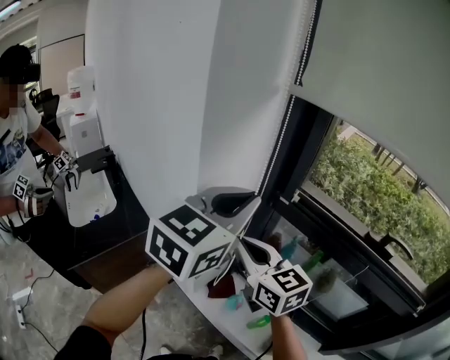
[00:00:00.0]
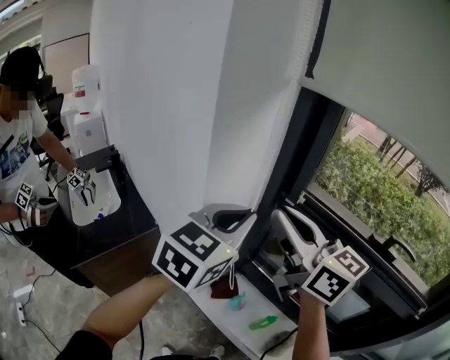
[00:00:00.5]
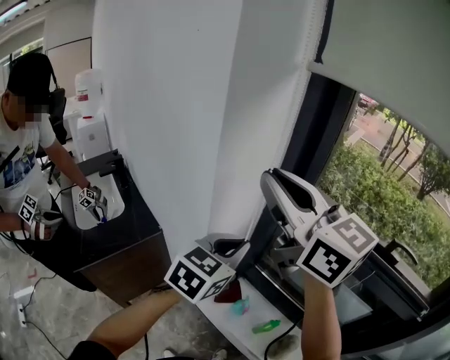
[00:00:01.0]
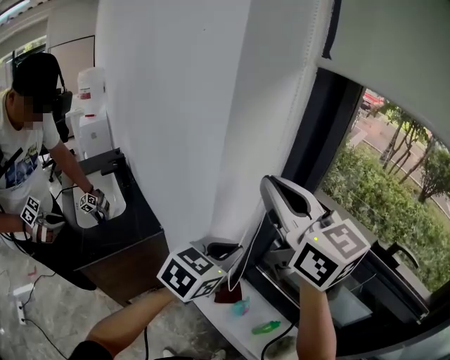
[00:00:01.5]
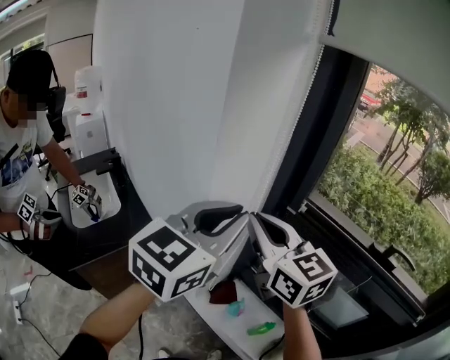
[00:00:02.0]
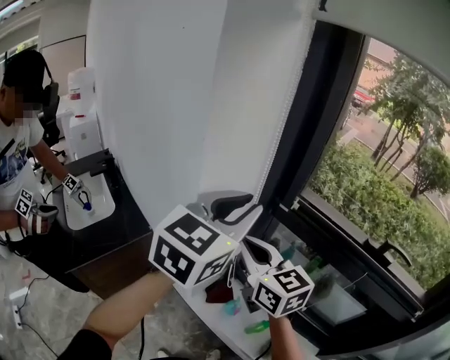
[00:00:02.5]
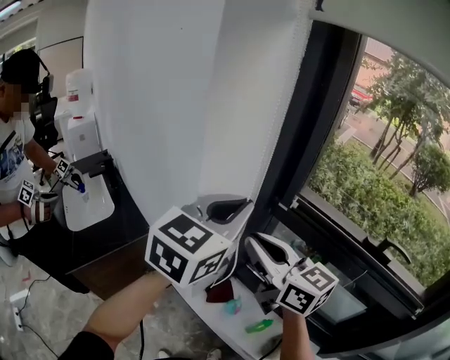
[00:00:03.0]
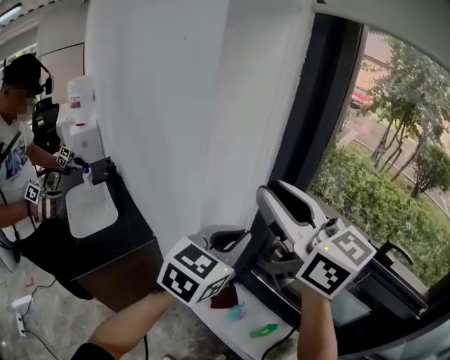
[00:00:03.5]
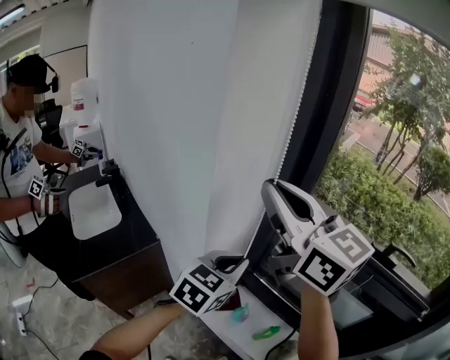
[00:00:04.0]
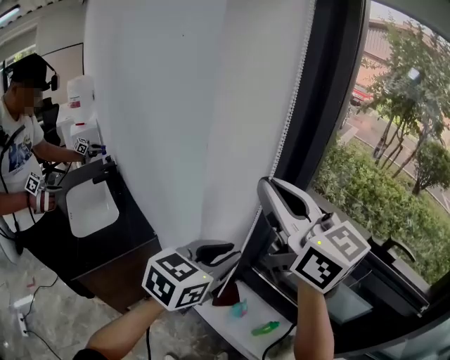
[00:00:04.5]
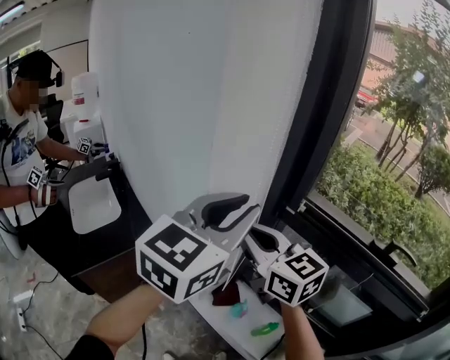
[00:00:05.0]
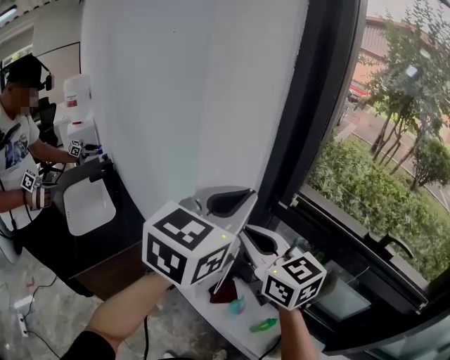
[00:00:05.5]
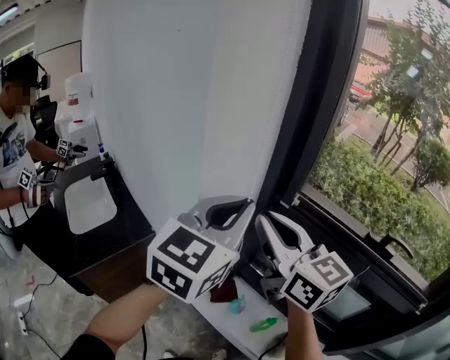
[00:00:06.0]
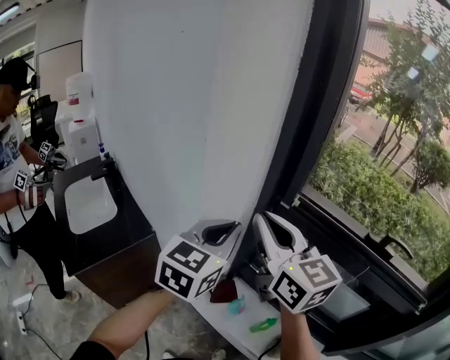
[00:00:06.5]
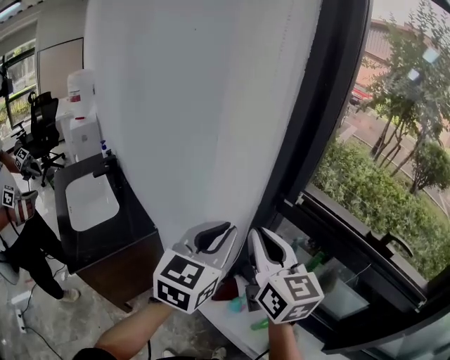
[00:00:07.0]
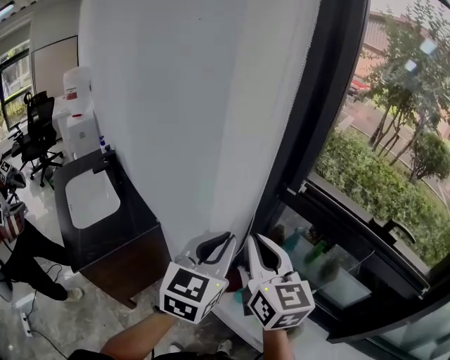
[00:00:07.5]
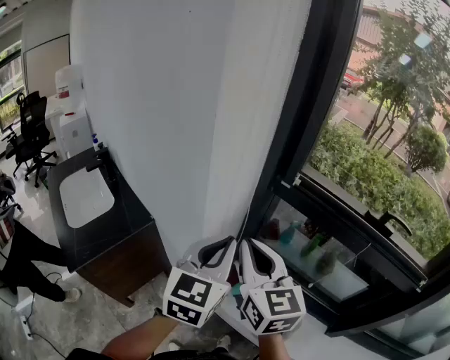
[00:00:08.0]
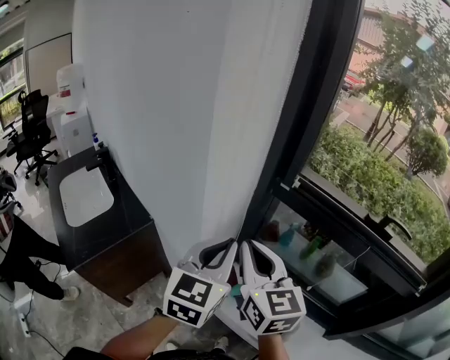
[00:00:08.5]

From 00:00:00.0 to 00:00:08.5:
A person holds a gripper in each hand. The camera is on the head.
From 00:00:00.0 to 00:00:02.0: The left gripper goes downward and returns, approximately 15 cm each way, while the right gripper moves upward, approximately 10 cm.
From 00:00:02.0 to 00:00:04.0: The left gripper shifts approximately 15 cm downward. The right gripper is displaced upward by roughly 10 cm.
From 00:00:04.0 to 00:00:06.5: The left gripper shifts about 5 cm upward, while the right gripper goes roughly 10 cm downward.
From 00:00:06.5 to 00:00:08.5: The left gripper is displaced backward by some 5 cm; the right gripper travels downward and backward by about 10 cm.

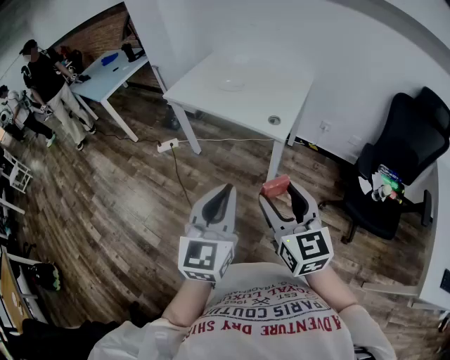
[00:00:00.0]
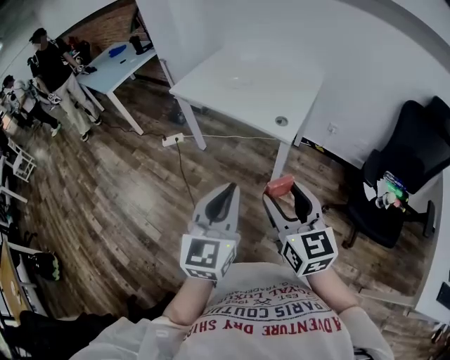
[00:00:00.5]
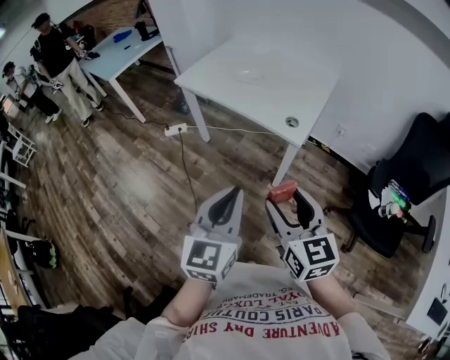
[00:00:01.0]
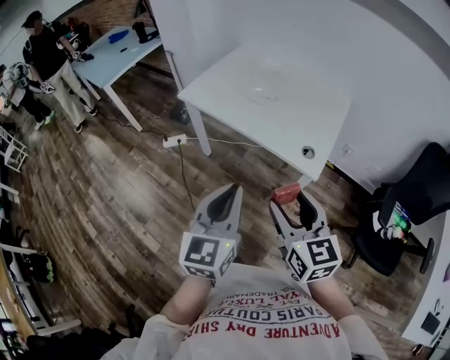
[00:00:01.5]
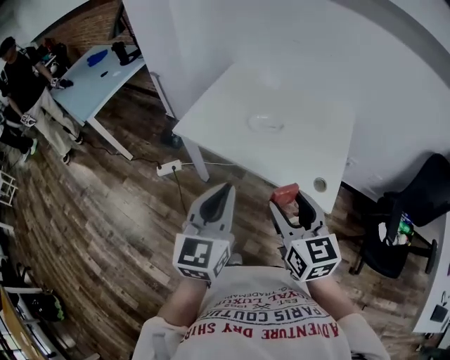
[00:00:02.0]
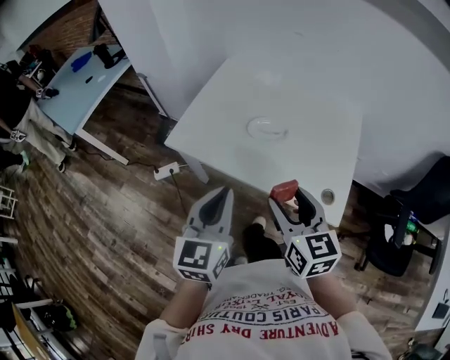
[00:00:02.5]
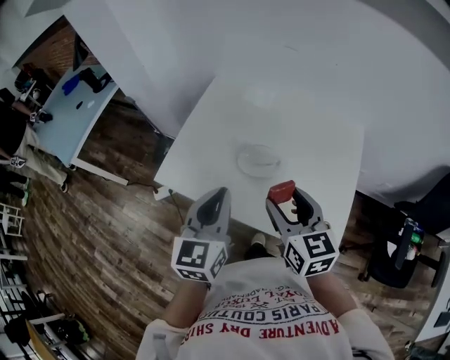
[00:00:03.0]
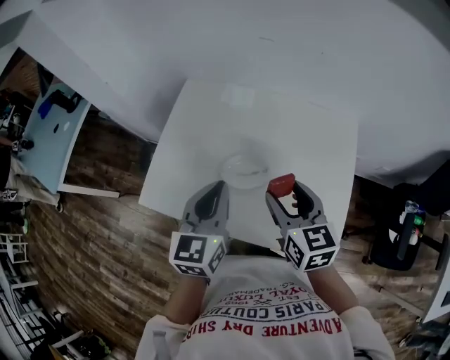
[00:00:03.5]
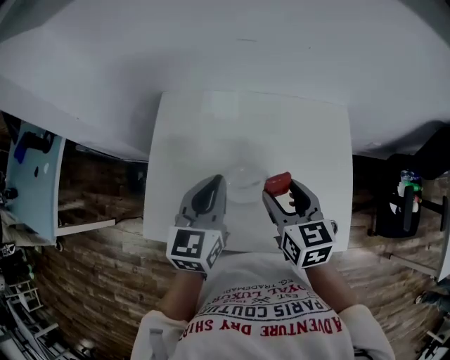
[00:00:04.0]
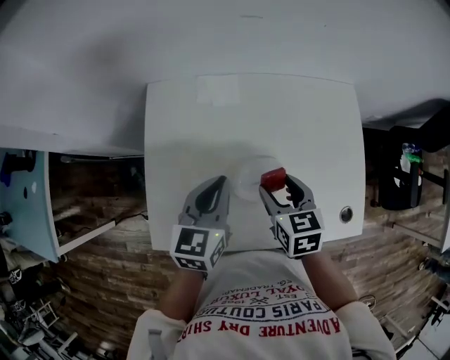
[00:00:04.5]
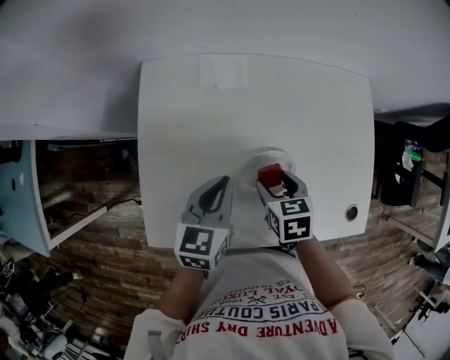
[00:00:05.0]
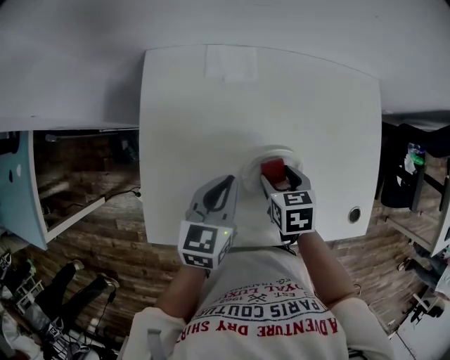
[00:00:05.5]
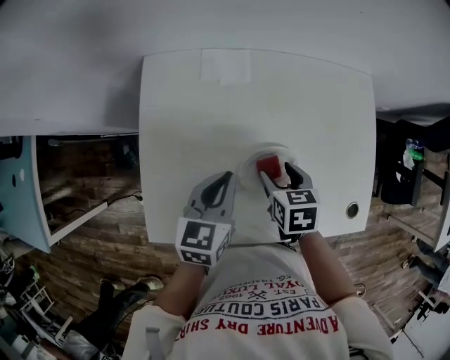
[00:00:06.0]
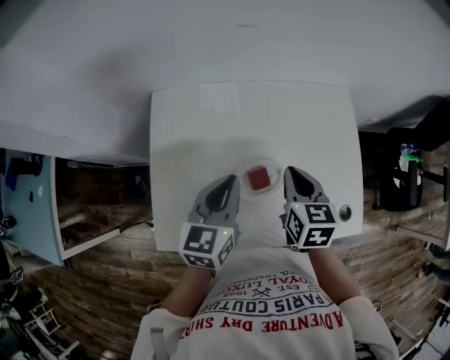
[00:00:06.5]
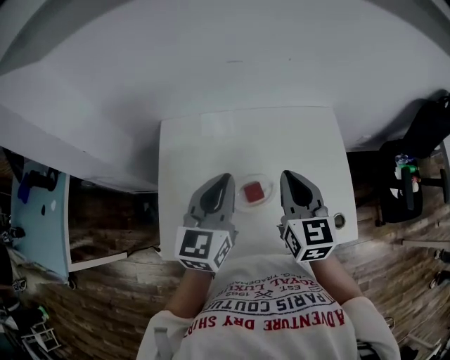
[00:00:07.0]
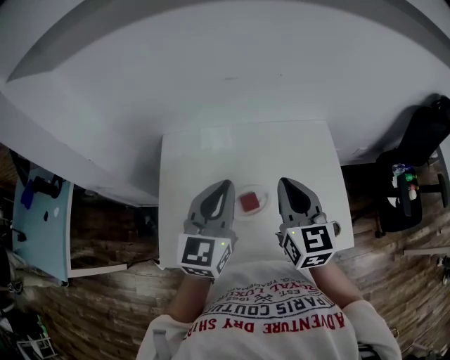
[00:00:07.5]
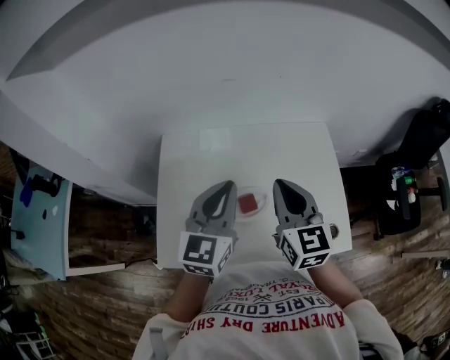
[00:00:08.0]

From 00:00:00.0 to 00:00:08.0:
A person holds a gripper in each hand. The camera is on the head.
From 00:00:00.0 to 00:00:02.0: The two grippers travel together, forward and to the left, roughly 40 cm.
From 00:00:02.0 to 00:00:04.0: The two grippers travel together, forward, approximately 40 cm. The left gripper turns by about 30 degrees; the right gripper rotates roughly 30 degrees.
From 00:00:04.0 to 00:00:06.0: The two grippers go approximately 15 cm downward. The right gripper turns by some 30 degrees.
From 00:00:06.0 to 00:00:08.0: Both grippers move upward, some 25 cm. The left gripper turns by about 30 degrees. The right gripper points its fingers some 50 degrees further upward, and closes up.

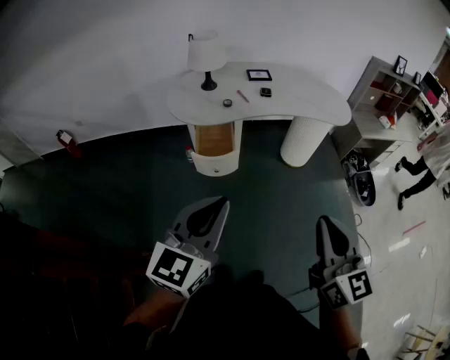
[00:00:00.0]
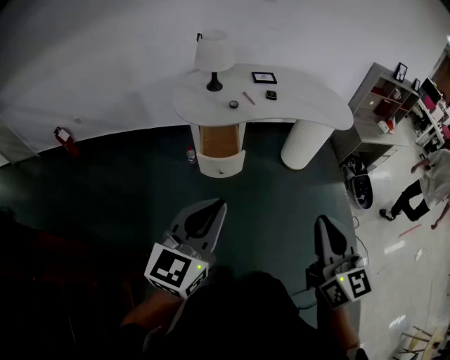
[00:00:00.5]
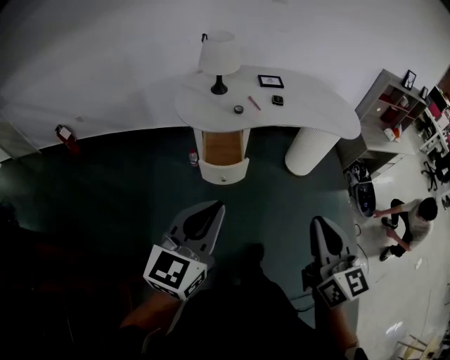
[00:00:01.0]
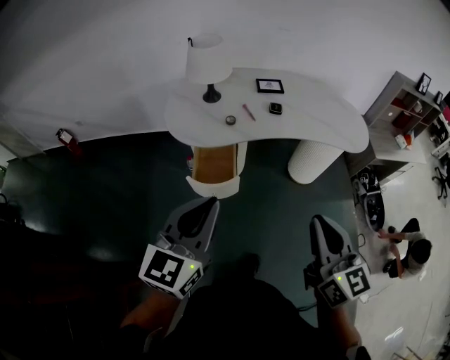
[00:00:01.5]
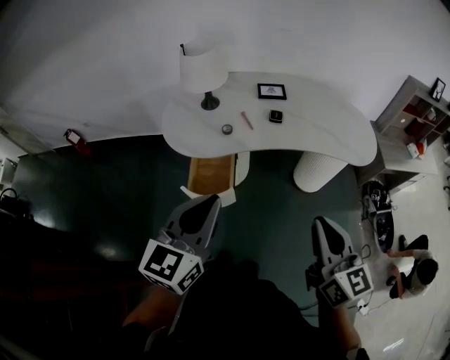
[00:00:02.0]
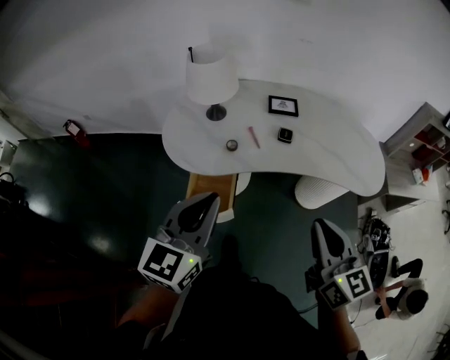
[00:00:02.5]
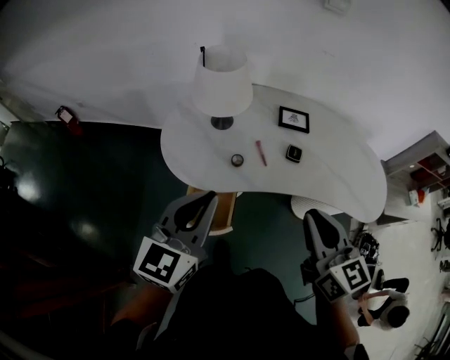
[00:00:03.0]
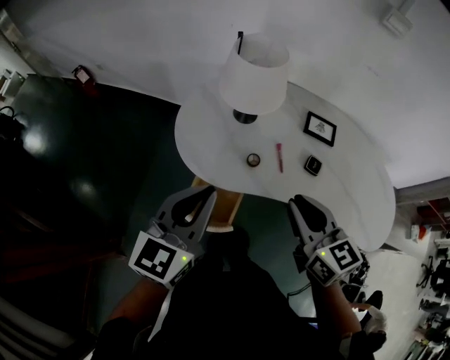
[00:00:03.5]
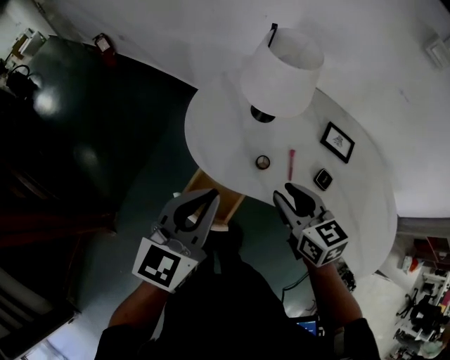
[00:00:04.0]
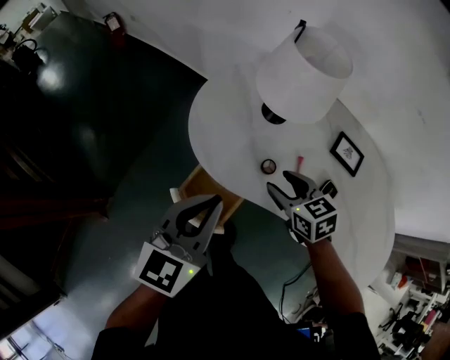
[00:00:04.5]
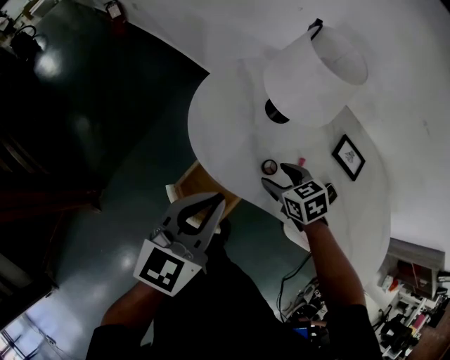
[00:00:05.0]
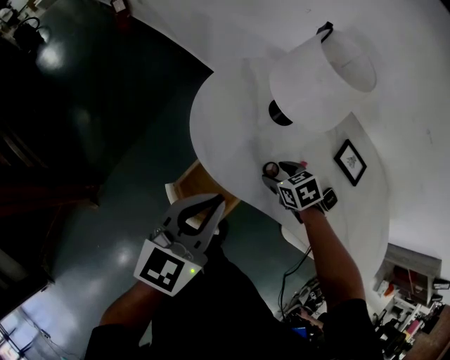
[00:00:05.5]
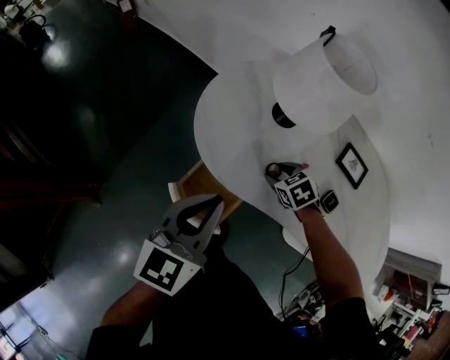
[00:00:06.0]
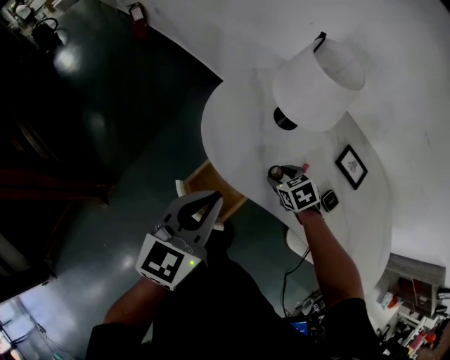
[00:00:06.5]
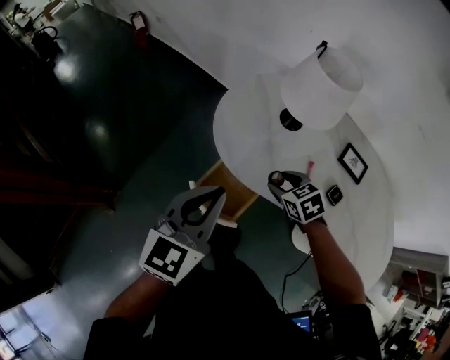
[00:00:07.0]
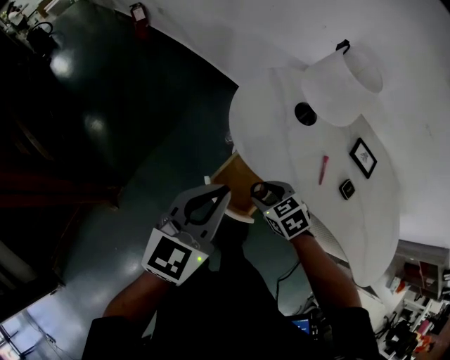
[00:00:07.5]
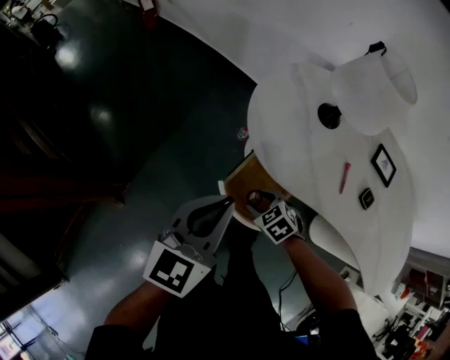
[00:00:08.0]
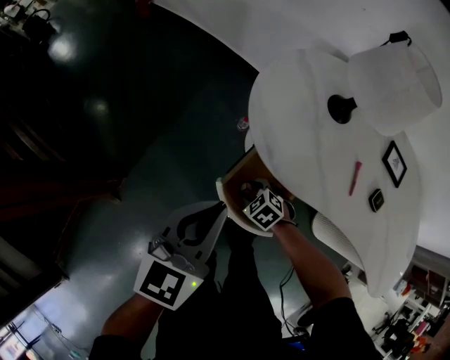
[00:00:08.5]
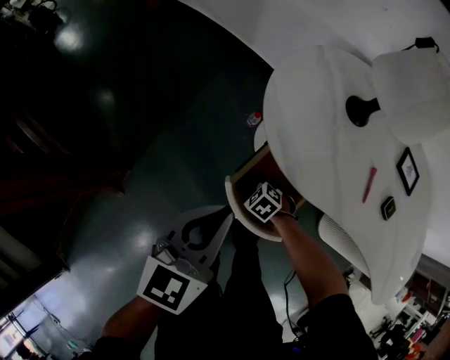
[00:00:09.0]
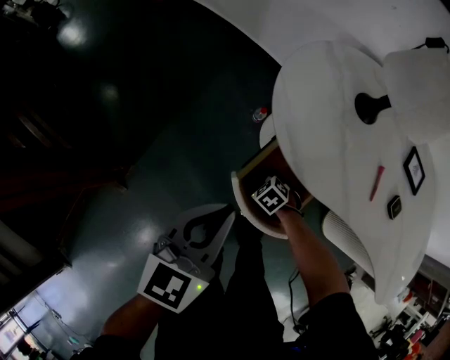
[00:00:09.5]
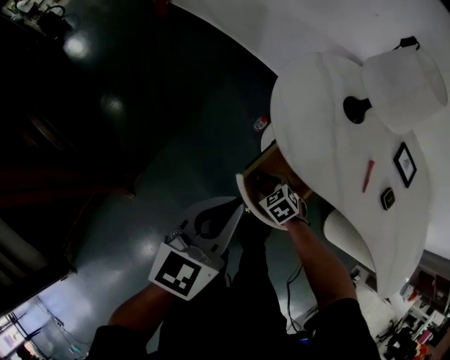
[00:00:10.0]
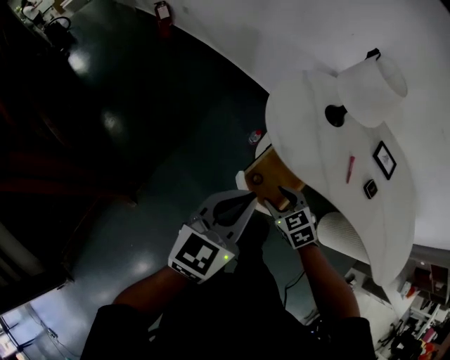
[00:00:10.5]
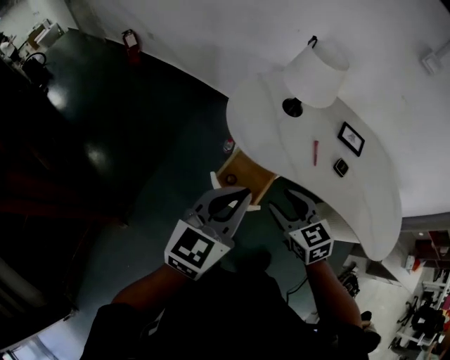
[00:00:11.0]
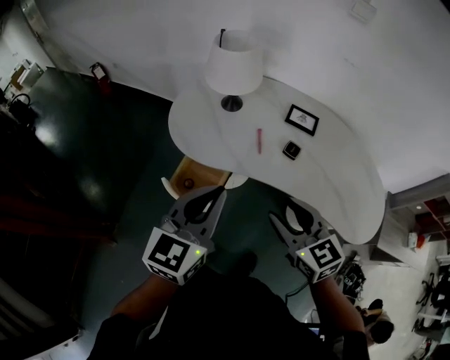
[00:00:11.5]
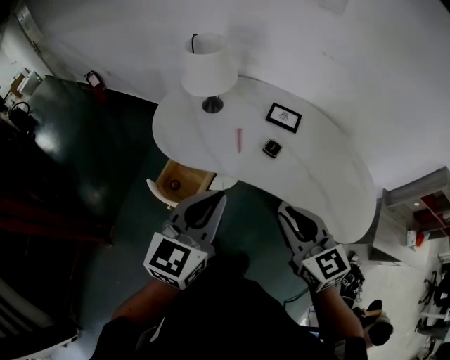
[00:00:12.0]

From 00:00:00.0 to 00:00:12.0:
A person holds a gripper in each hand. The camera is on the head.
From 00:00:00.0 to 00:00:02.0: The two grippers go some 25 cm forward.
From 00:00:02.0 to 00:00:04.0: The left gripper shifts by roughly 30 cm, and changes its angle by approximately 30 degrees. Meanwhile the right gripper shifts by roughly 40 cm, swivels approximately 50 degrees, and opens up.
From 00:00:04.0 to 00:00:06.0: The left gripper moves downward, some 5 cm, while the right gripper goes approximately 25 cm downward and forward, tips its fingers downward by about 40 degrees, and opens.
From 00:00:06.0 to 00:00:08.0: The left gripper travels to the left by some 15 cm. The right gripper is displaced to the left and backward by some 25 cm.
From 00:00:08.0 to 00:00:10.0: The right gripper moves downward, about 10 cm.
From 00:00:10.0 to 00:00:12.0: The right gripper heads upward, to the right and backward, covering about 60 cm, tilts its fingers about 50 degrees upward, and closes its fingers. Meanwhile the left gripper heads to the right, upward and backward, covering about 40 cm.
